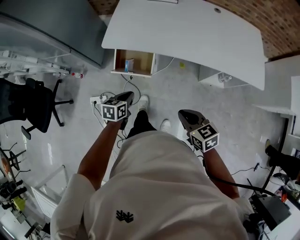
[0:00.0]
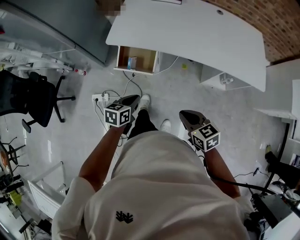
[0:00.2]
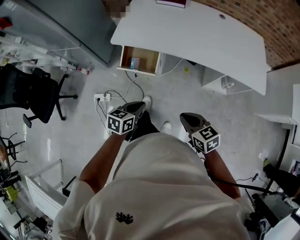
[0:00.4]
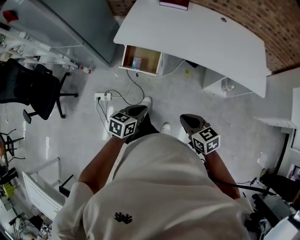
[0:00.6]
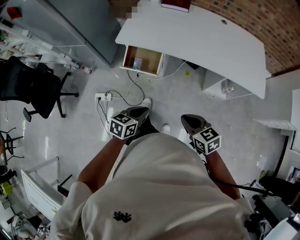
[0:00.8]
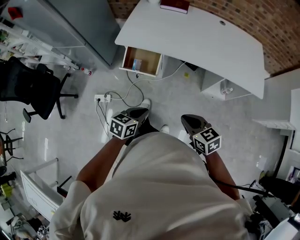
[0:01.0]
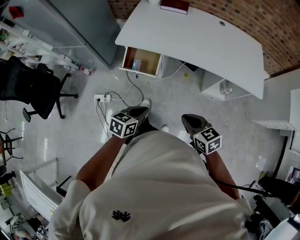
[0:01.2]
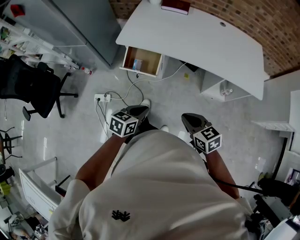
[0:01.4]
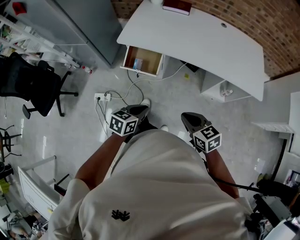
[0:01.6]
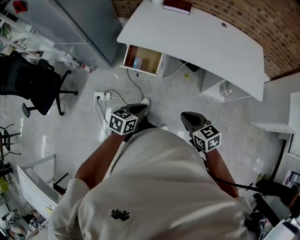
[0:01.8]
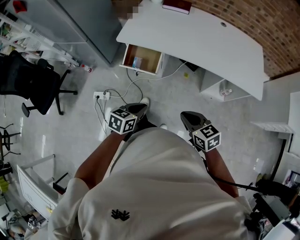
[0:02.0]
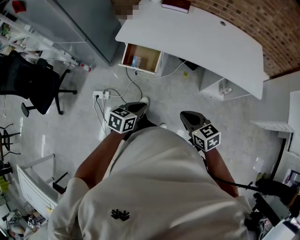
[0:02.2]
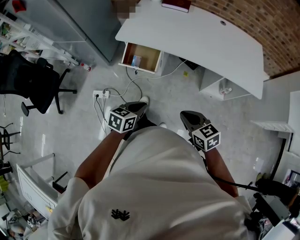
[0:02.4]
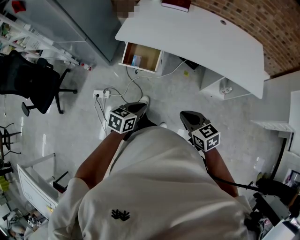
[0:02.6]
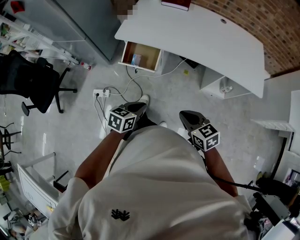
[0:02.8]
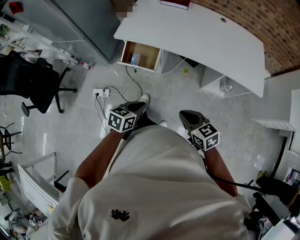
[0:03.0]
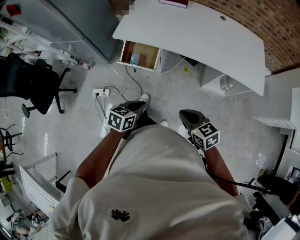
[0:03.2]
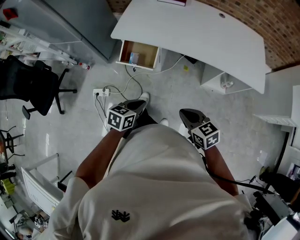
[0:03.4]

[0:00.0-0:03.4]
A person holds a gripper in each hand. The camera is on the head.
0:00.0 to 0:01.6: The left gripper travels backward, upward and to the right by about 20 cm. Meanwhile the right gripper heads backward, covering roughly 10 cm.
0:01.6 to 0:03.4: The grippers move only a little.

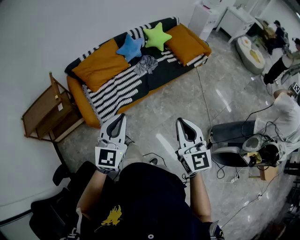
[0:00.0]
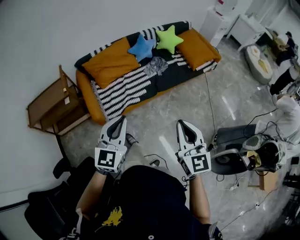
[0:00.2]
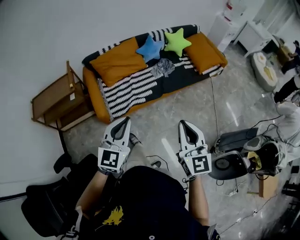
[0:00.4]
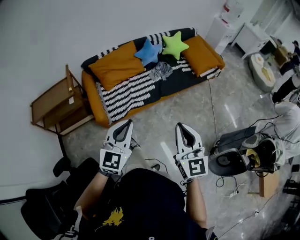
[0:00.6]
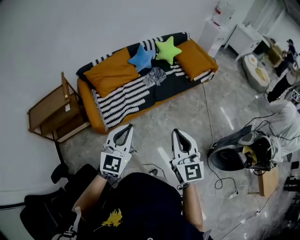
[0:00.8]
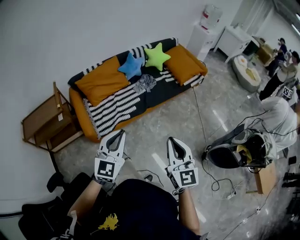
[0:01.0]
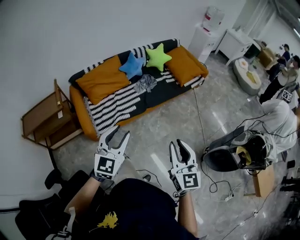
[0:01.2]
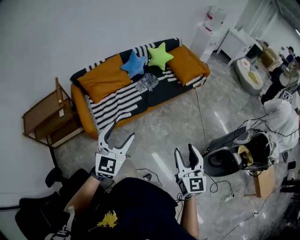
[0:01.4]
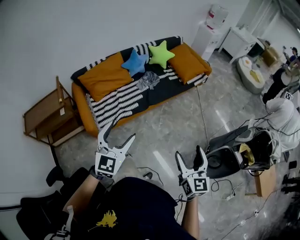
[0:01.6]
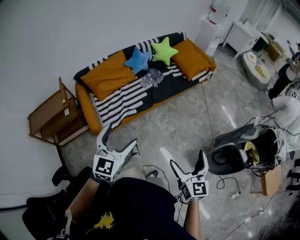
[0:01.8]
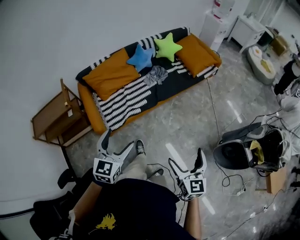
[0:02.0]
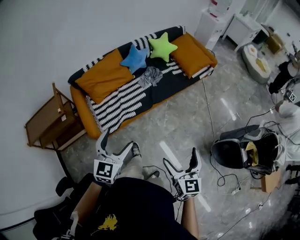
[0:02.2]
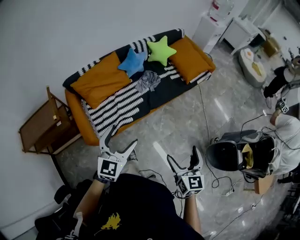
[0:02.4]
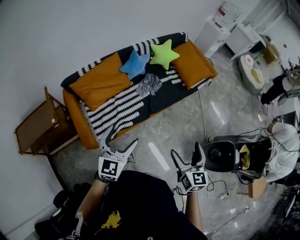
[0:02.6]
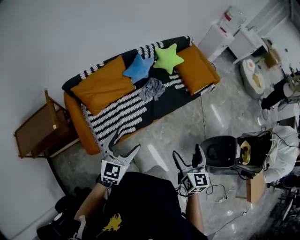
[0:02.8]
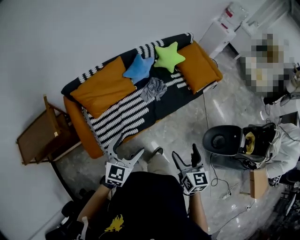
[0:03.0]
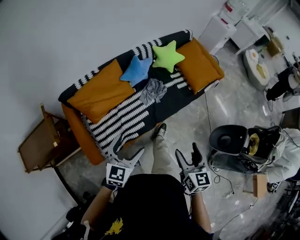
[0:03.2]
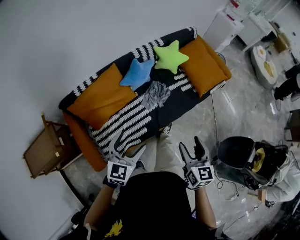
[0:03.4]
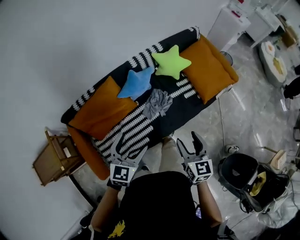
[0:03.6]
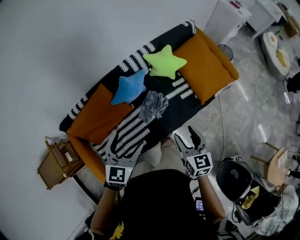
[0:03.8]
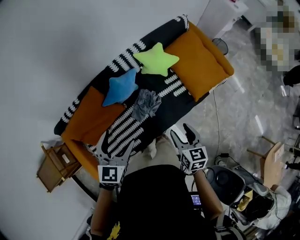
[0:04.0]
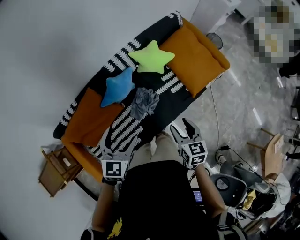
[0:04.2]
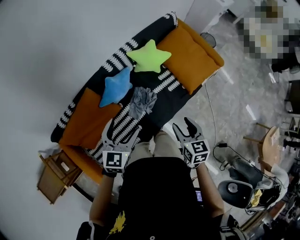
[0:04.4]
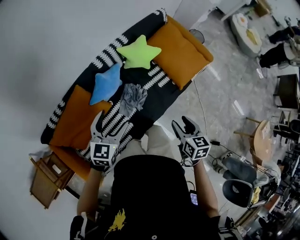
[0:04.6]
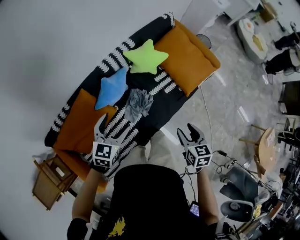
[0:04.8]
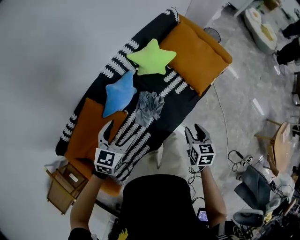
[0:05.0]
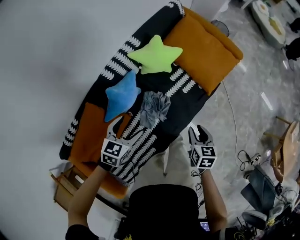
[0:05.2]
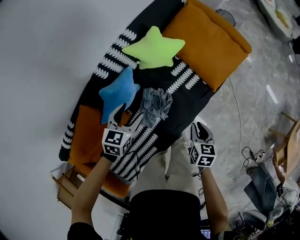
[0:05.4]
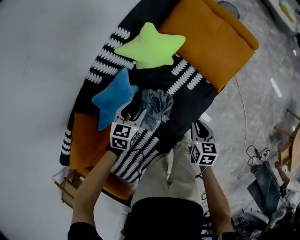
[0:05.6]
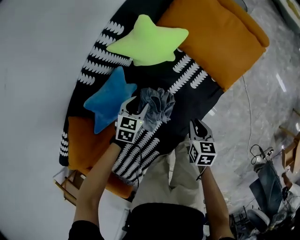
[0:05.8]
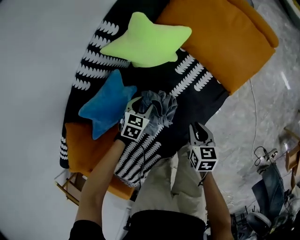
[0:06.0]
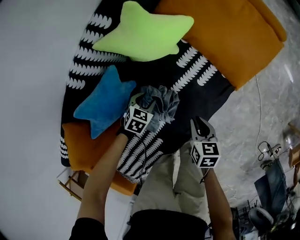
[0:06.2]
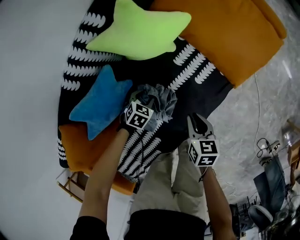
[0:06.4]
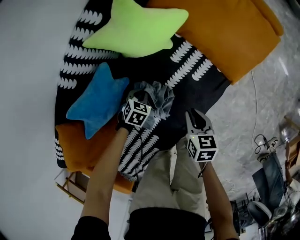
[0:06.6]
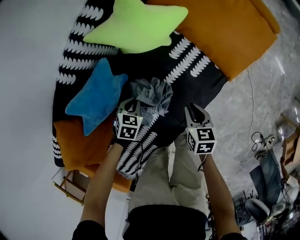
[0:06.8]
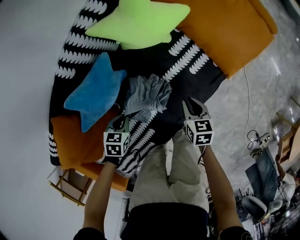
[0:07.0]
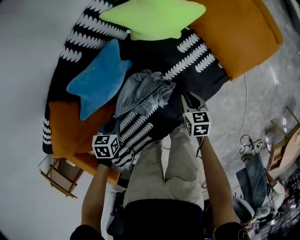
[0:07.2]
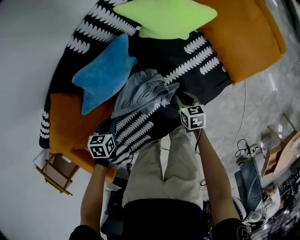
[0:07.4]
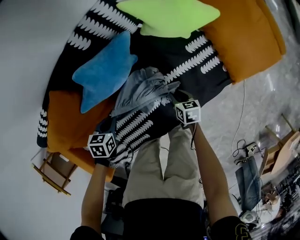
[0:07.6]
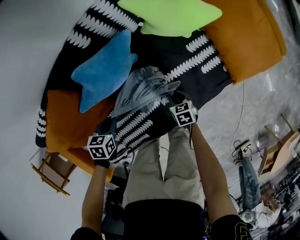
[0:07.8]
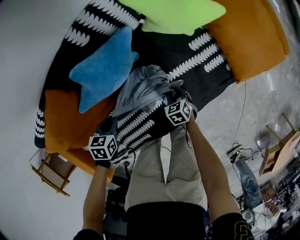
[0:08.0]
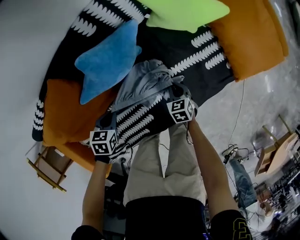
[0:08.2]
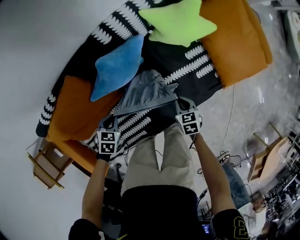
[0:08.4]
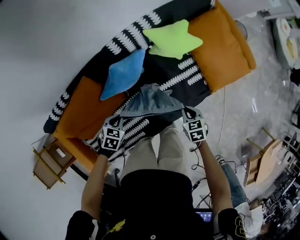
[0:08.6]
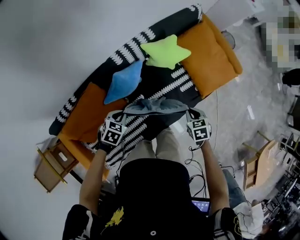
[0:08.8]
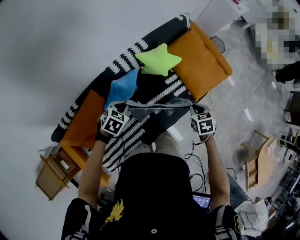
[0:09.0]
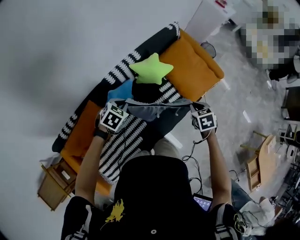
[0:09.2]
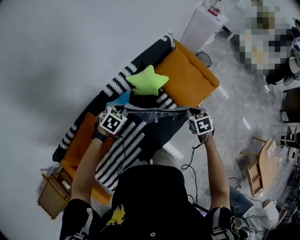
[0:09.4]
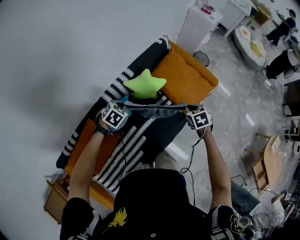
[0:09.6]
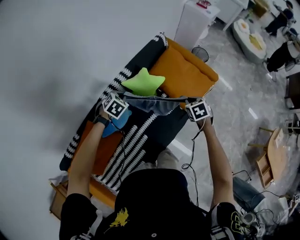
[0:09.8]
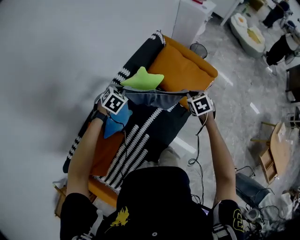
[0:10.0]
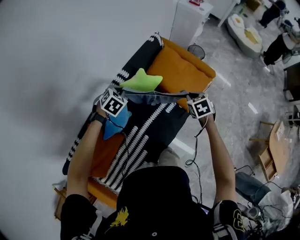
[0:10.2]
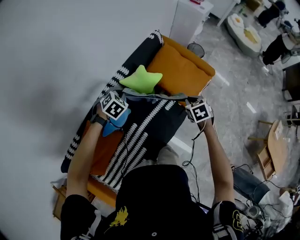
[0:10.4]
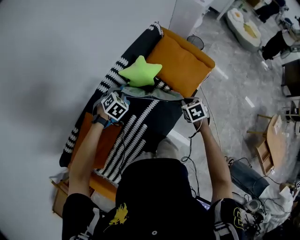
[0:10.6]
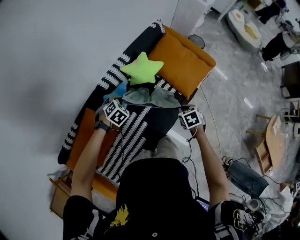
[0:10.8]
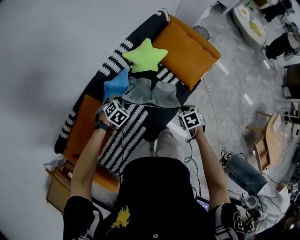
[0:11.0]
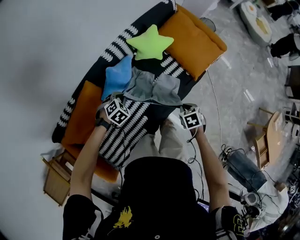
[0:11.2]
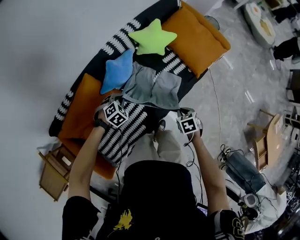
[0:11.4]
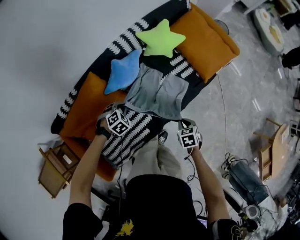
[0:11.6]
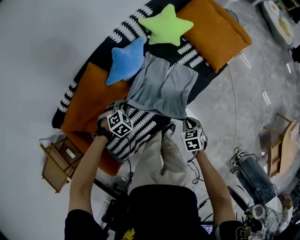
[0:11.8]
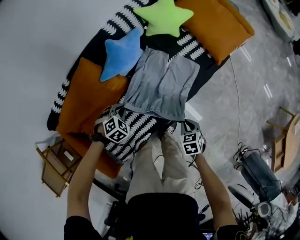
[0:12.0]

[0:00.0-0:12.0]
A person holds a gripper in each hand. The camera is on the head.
0:00.0 to 0:01.6: The left gripper opens up; the right gripper heads backward, to the right and downward, covering approximately 10 cm, and opens its fingers.
0:01.6 to 0:03.0: The grippers both shift forward and to the left by some 35 cm.
0:03.0 to 0:04.4: The pair of grippers is taken forward, about 50 cm. The right gripper closes up.
0:04.4 to 0:06.0: The left gripper moves downward and forward, roughly 60 cm, angles its fingers downward, by about 40 degrees, and closes. The right gripper shifts some 40 cm downward, and rotates some 30 degrees.
0:06.0 to 0:07.6: The right gripper is displaced downward by approximately 15 cm, and swivels approximately 30 degrees. Meanwhile the left gripper moves approximately 10 cm downward and comes back, twists about 40 degrees counterclockwise, seen from behind, and closes.
0:07.6 to 0:09.0: The two grippers go some 40 cm upward. The right gripper turns by roughly 30 degrees; the left gripper swivels some 40 degrees.
0:09.0 to 0:10.4: The right gripper is displaced forward, to the right and upward by about 10 cm. Meanwhile the left gripper is displaced forward and upward by approximately 20 cm, and rotates about 30 degrees.
0:10.4 to 0:12.0: The left gripper travels backward and downward by roughly 50 cm. The right gripper moves backward, downward and to the left, some 50 cm.

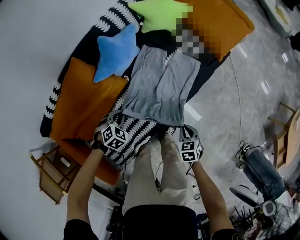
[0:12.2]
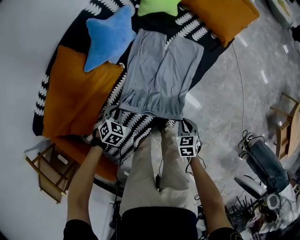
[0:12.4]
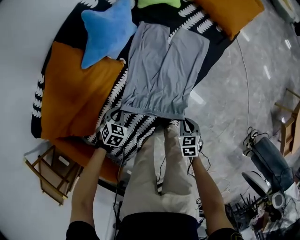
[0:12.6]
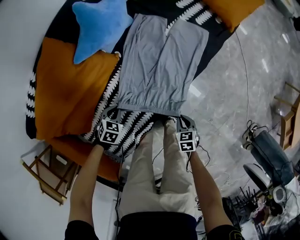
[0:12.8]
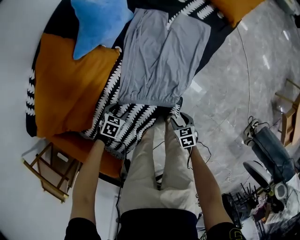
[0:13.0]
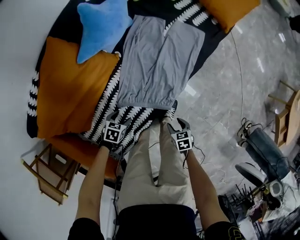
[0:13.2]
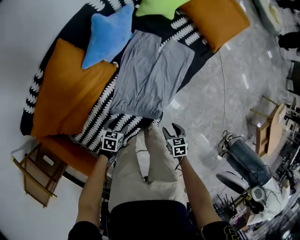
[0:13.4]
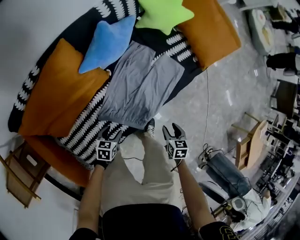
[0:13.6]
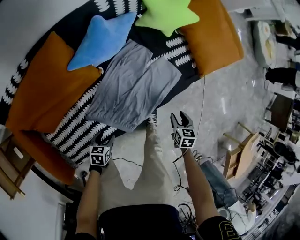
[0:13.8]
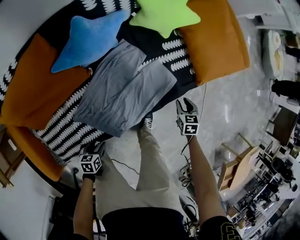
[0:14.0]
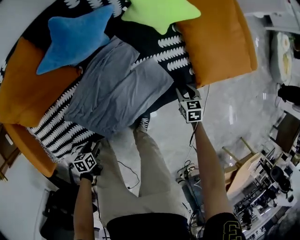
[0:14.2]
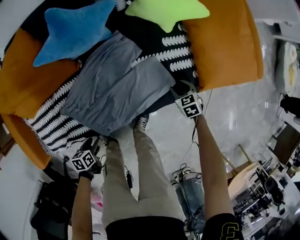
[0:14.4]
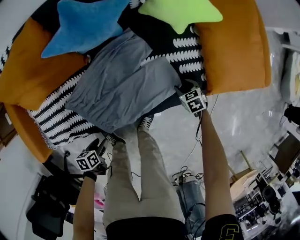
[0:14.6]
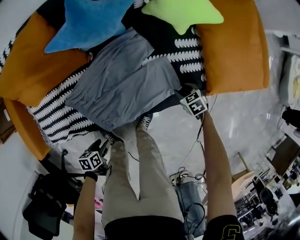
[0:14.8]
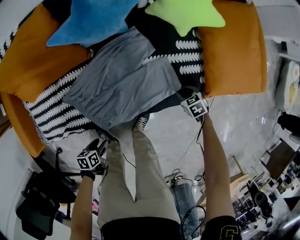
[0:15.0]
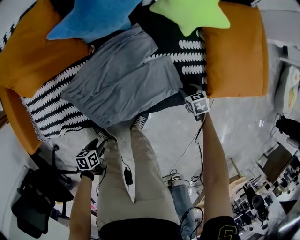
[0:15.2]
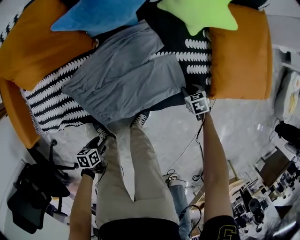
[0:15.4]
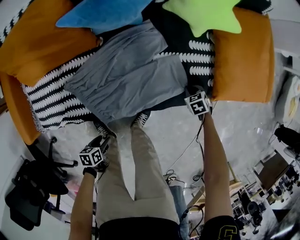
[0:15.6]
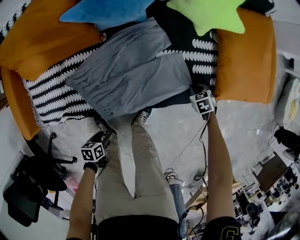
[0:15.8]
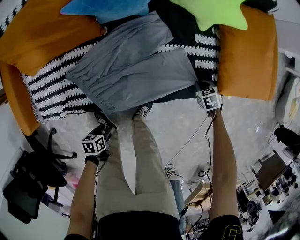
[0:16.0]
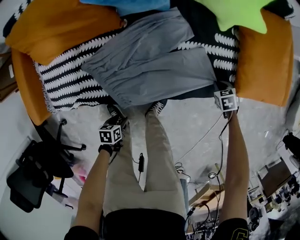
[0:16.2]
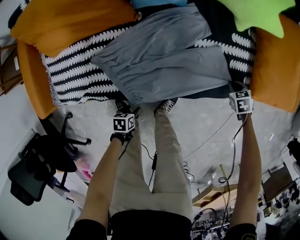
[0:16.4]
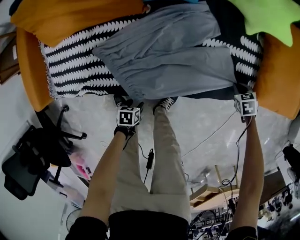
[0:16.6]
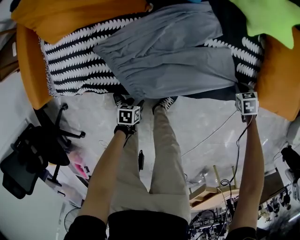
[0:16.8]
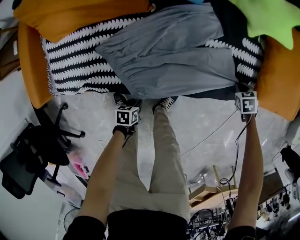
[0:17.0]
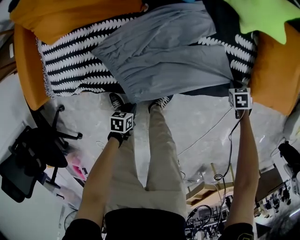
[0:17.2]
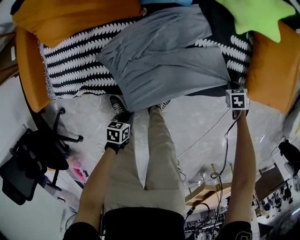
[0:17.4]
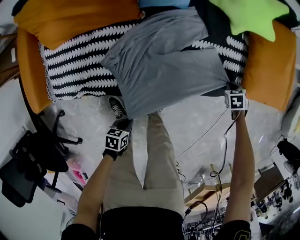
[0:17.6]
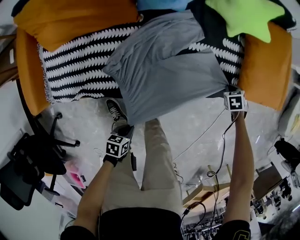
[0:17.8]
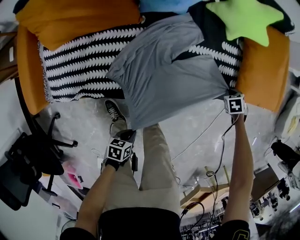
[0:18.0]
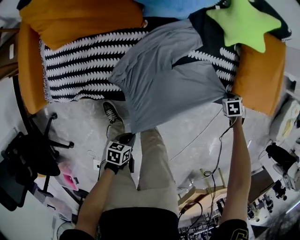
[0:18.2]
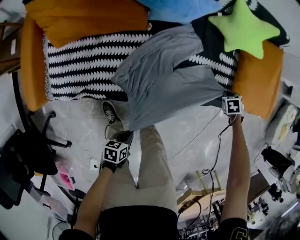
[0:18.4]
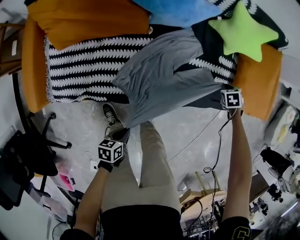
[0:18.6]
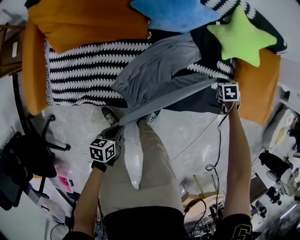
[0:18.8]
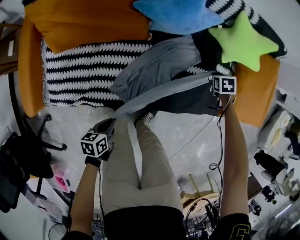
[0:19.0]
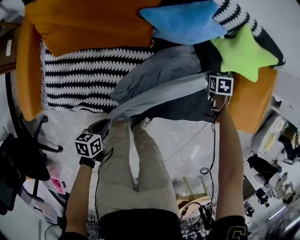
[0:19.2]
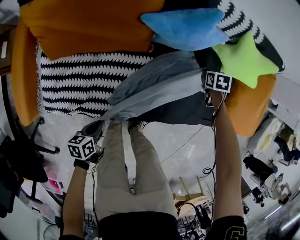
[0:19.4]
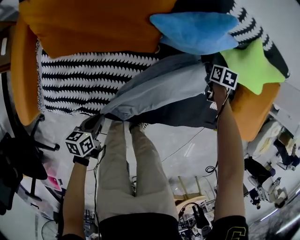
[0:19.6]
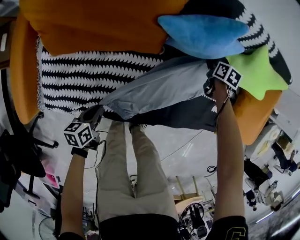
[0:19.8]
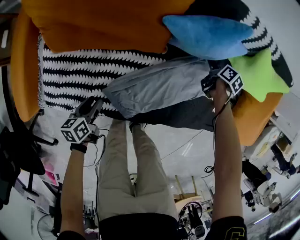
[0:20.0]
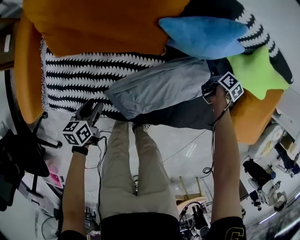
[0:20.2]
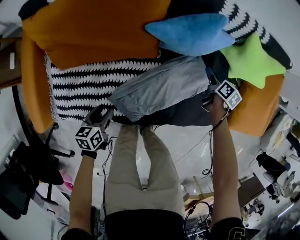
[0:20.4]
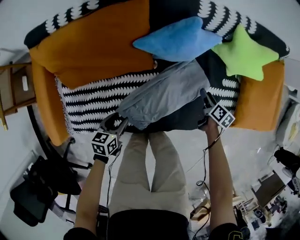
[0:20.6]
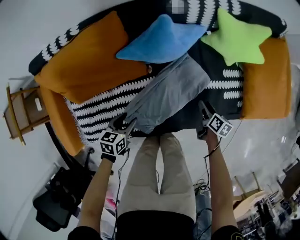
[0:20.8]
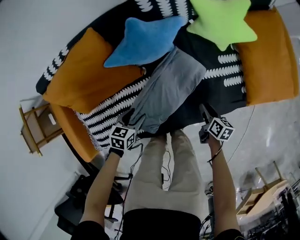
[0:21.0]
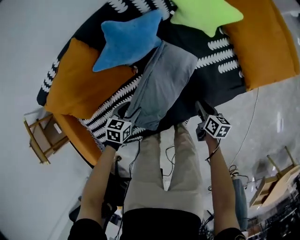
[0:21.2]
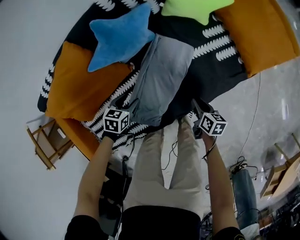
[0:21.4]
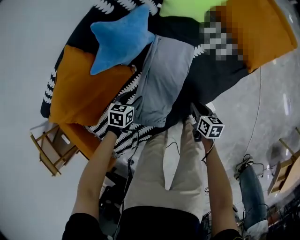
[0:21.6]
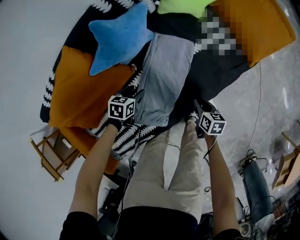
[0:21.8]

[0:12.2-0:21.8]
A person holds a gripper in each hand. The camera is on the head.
0:12.2 to 0:13.8: The left gripper ends up some 20 cm from where it was, rolls counterclockwise, seen from behind, by approximately 60 degrees, and opens up. The right gripper goes downward and returns, some 15 cm each way.
0:13.8 to 0:15.4: The left gripper moves some 20 cm, and twists about 40 degrees counterclockwise, seen from behind. Meanwhile the right gripper changes place by about 30 cm, and twists about 40 degrees counterclockwise, seen from behind.
0:15.4 to 0:17.0: The left gripper is displaced downward by about 10 cm.
0:17.0 to 0:18.6: The left gripper heads upward, covering some 20 cm, while the right gripper heads upward, covering roughly 10 cm.
0:18.6 to 0:20.2: The left gripper changes place by about 30 cm, rotates some 30 degrees, and opens its fingers. The right gripper ends up some 30 cm from where it was, twists about 60 degrees clockwise, seen from behind, and opens its fingers.
0:20.2 to 0:21.8: The left gripper goes upward and returns, approximately 10 cm each way, and rotates around the line of its fingers by roughly 60 degrees, clockwise from behind; the right gripper changes place by roughly 35 cm, and closes.
